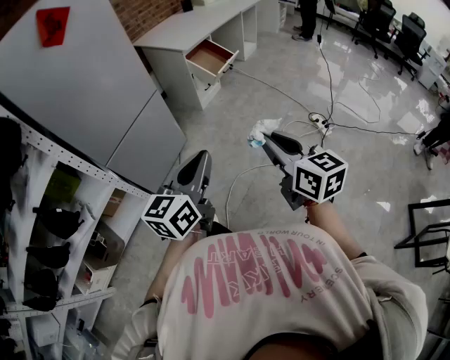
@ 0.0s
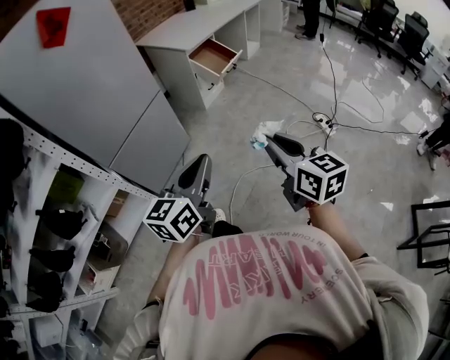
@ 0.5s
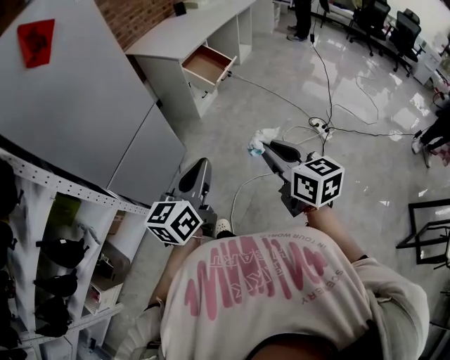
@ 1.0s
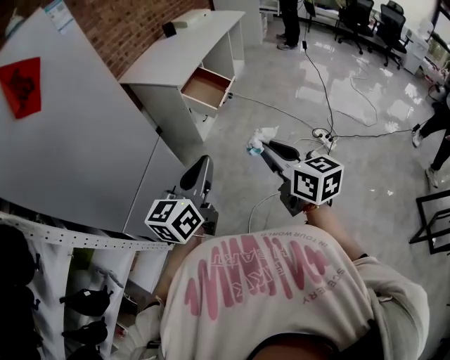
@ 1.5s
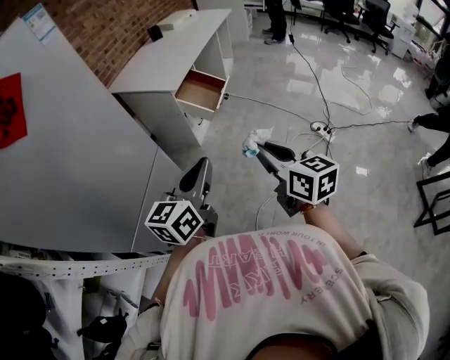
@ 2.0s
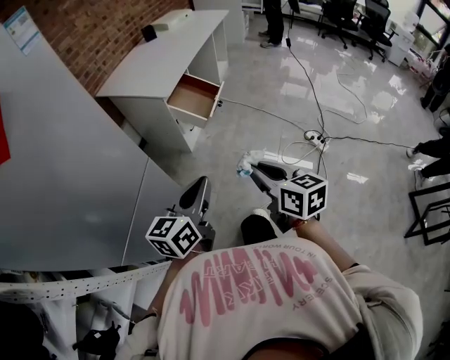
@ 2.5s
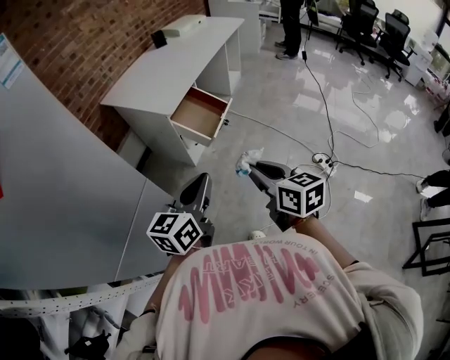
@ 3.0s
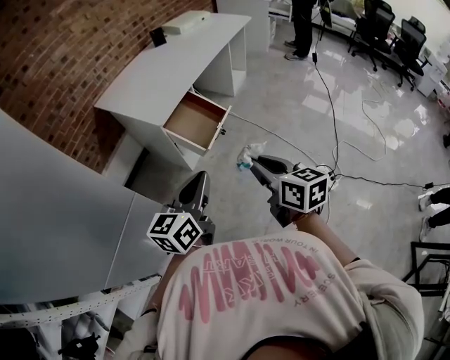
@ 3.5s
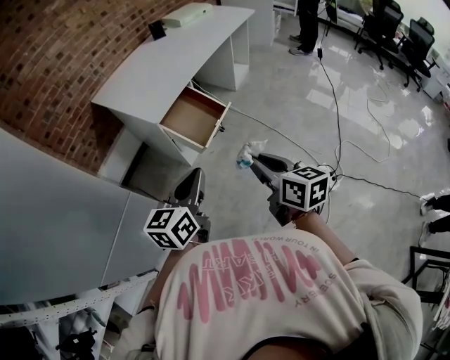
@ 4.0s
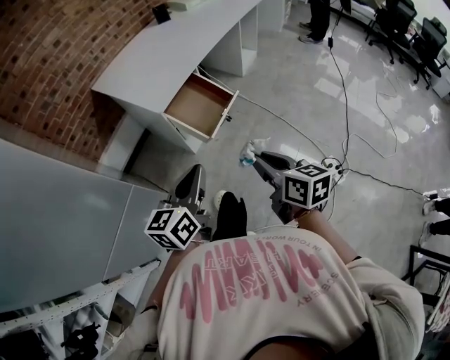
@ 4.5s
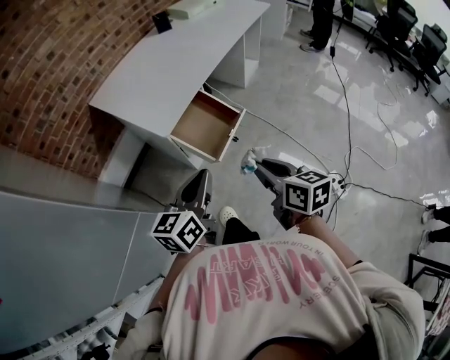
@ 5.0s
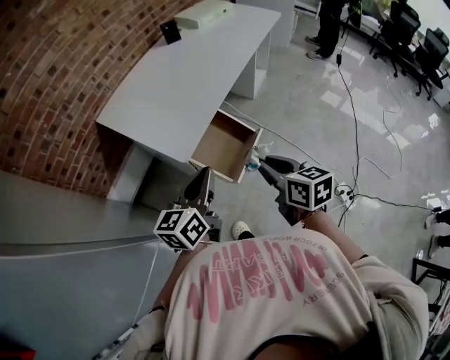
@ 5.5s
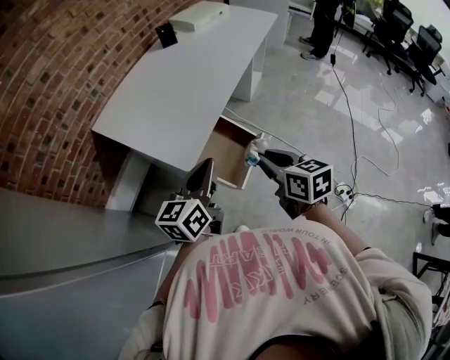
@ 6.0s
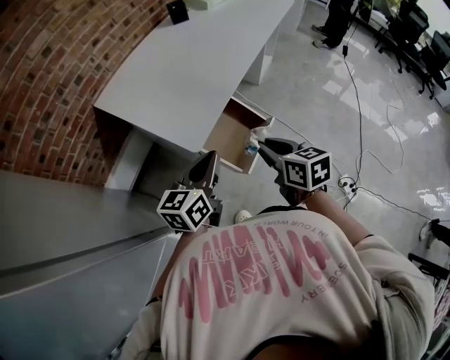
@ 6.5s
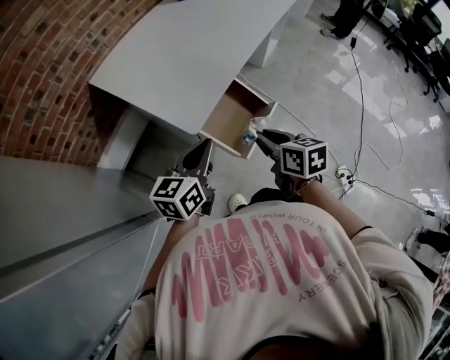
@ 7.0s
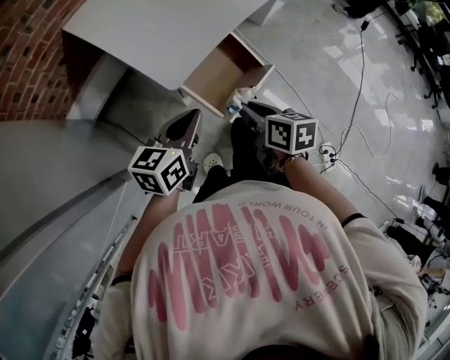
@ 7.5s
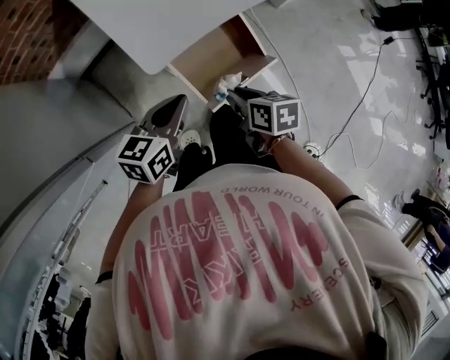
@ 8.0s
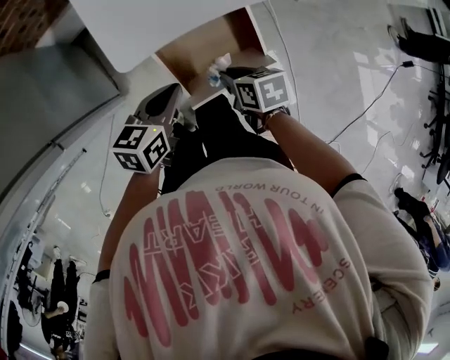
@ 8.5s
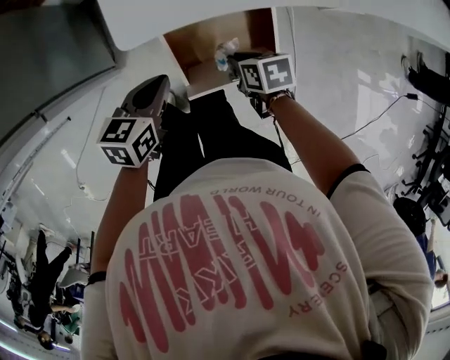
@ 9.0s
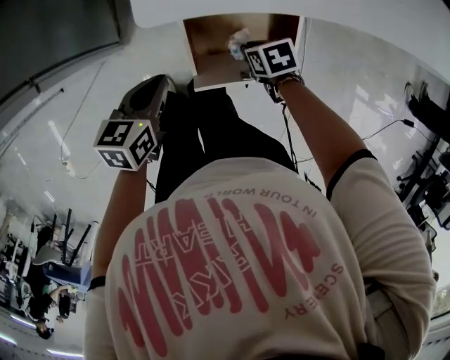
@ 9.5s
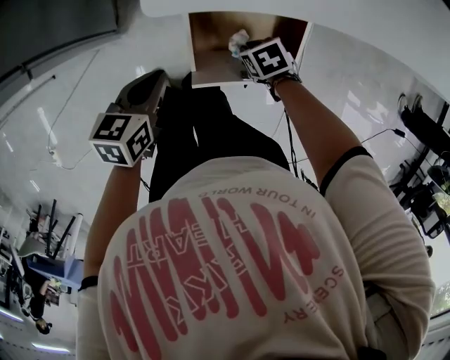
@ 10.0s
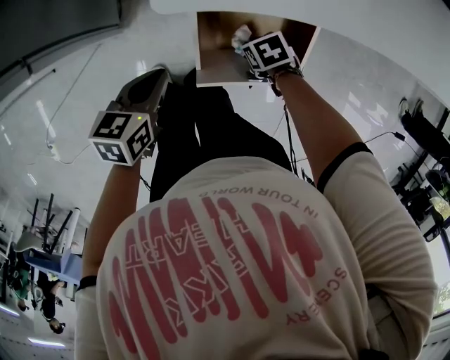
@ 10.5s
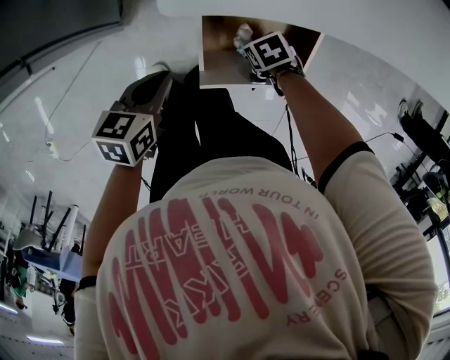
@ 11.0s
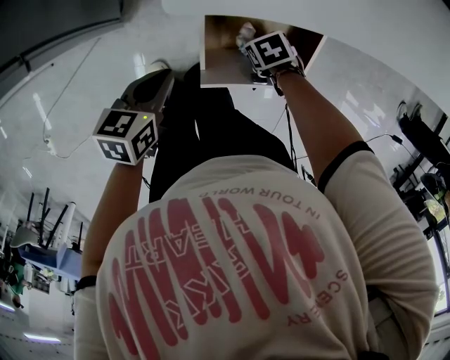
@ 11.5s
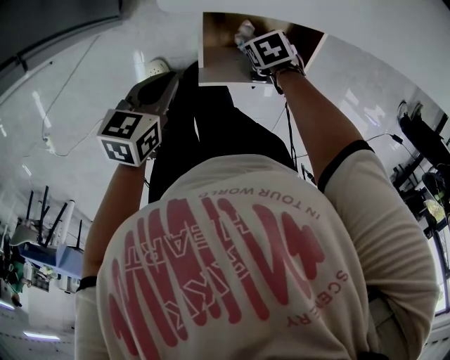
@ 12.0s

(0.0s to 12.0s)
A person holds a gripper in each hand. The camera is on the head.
0.0s - 2.0s: The right gripper is displaced forward and to the left by some 30 cm; the left gripper travels forward by roughly 30 cm.
2.0s - 4.0s: The grippers both shift forward and to the right by roughly 35 cm.
4.0s - 6.0s: The two grippers go approximately 30 cm forward.
6.0s - 8.0s: Both grippers travel together downward, approximately 20 cm. The left gripper swivels approximately 20 degrees. Meanwhile the right gripper changes its angle by roughly 30 degrees.
8.0s - 10.0s: The left gripper heads downward, covering some 10 cm, and turns by about 40 degrees, while the right gripper is displaced downward by about 20 cm, and turns by some 70 degrees.
10.0s - 12.0s: The grippers move only a little.

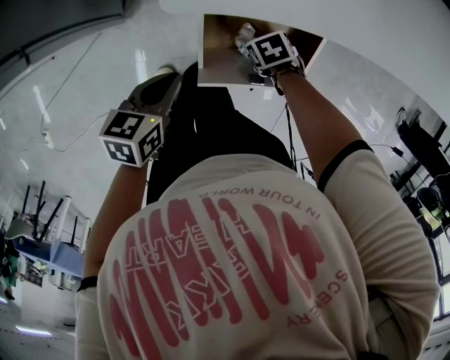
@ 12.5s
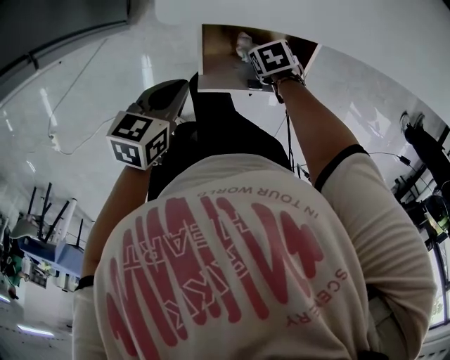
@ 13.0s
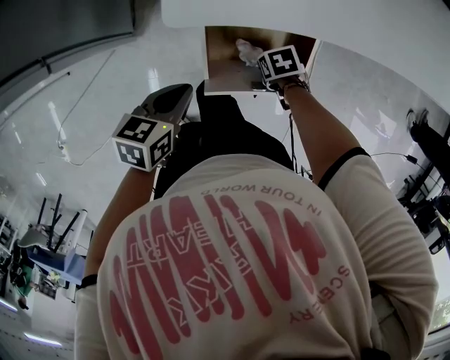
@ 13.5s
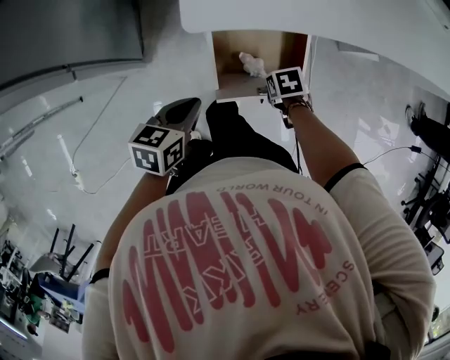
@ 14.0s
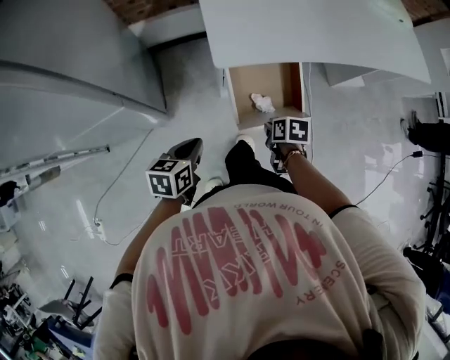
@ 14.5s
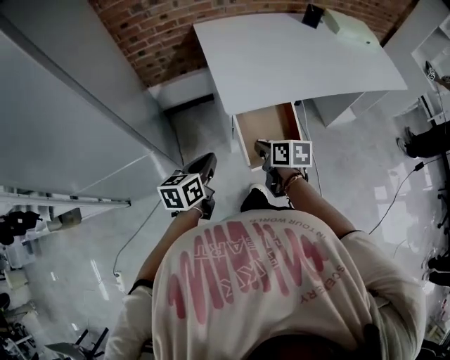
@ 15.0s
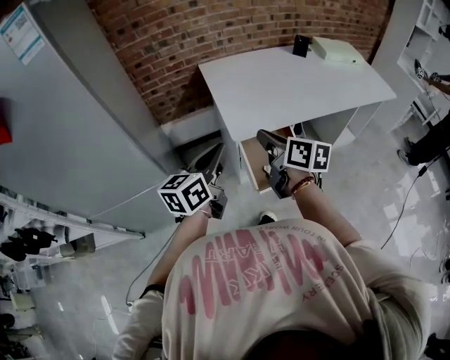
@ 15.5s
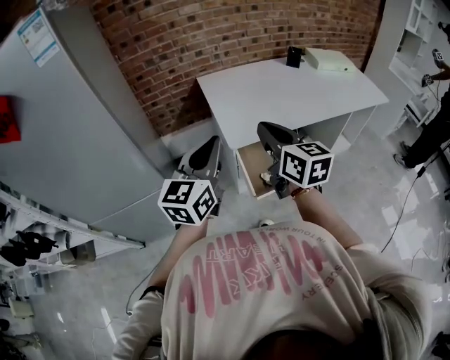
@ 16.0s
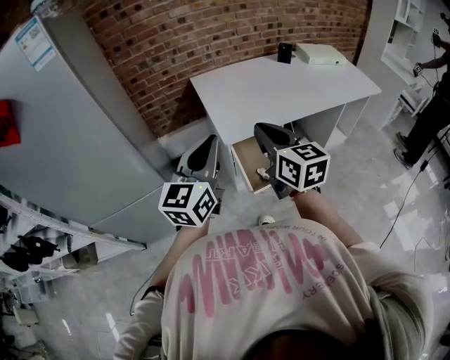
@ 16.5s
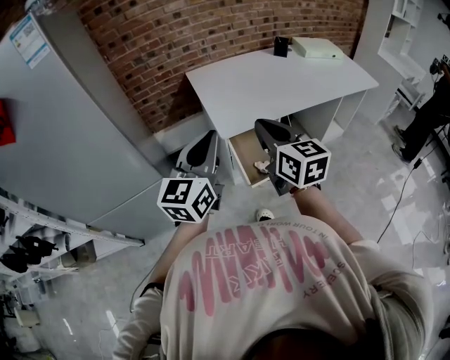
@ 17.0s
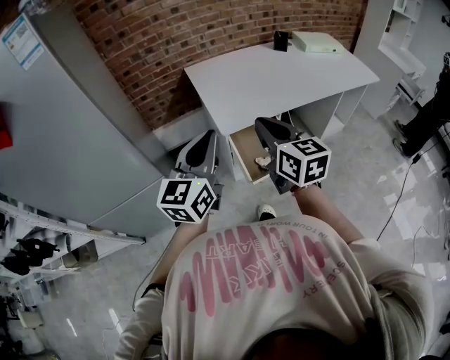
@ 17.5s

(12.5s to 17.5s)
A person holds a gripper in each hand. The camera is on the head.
12.5s - 15.0s: The left gripper moves upward, roughly 20 cm, and turns by about 30 degrees, while the right gripper shifts about 35 cm upward, points its fingers about 40 degrees further upward, and closes its fingers.
15.0s - 17.5s: The grippers both shift upward by about 25 cm. The right gripper tilts its fingers approximately 30 degrees upward, while the left gripper turns by roughly 40 degrees.

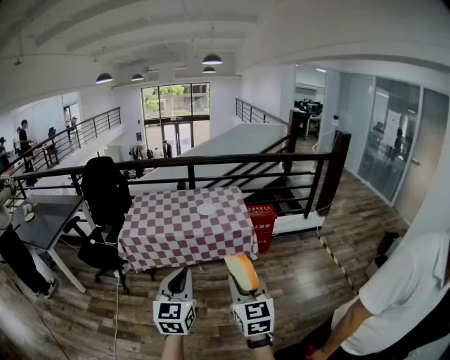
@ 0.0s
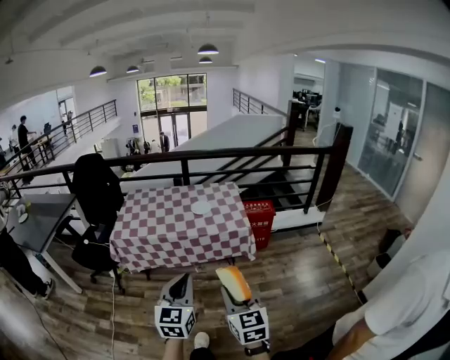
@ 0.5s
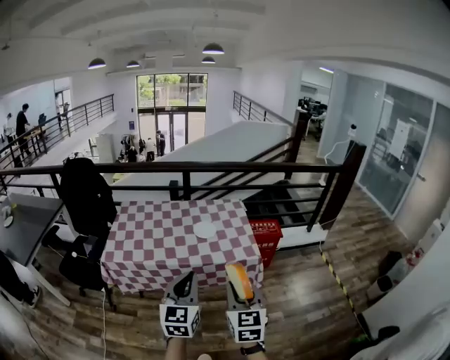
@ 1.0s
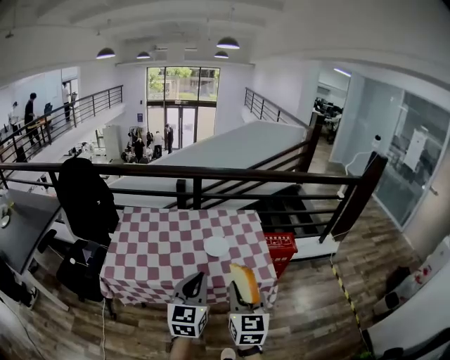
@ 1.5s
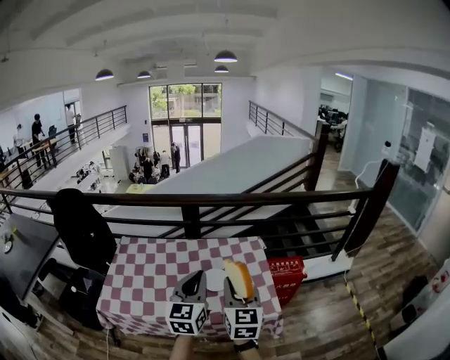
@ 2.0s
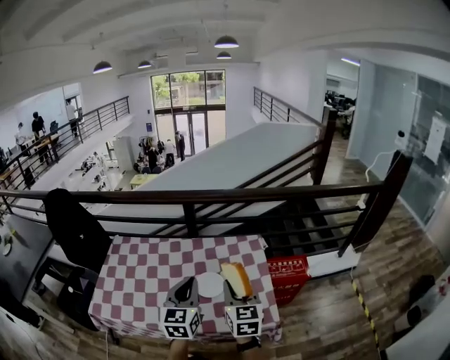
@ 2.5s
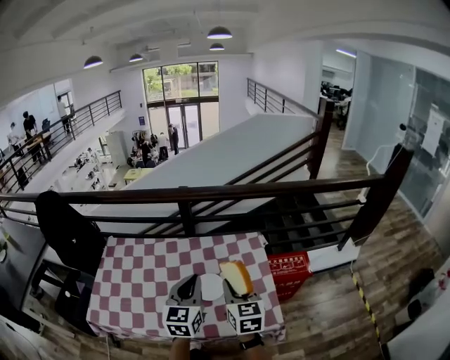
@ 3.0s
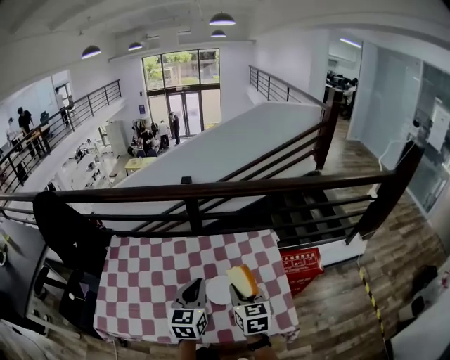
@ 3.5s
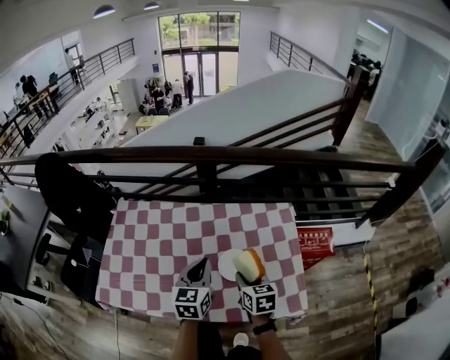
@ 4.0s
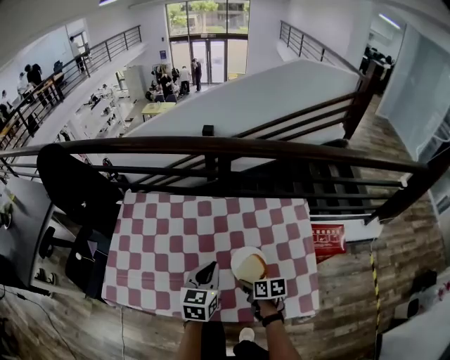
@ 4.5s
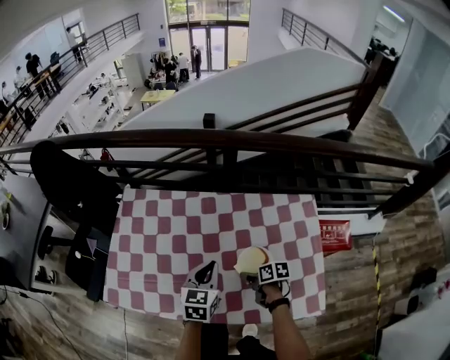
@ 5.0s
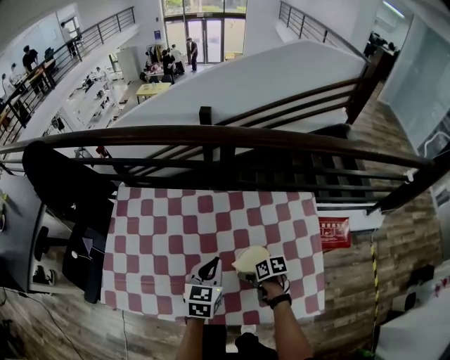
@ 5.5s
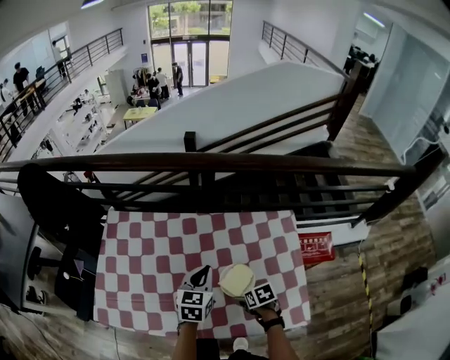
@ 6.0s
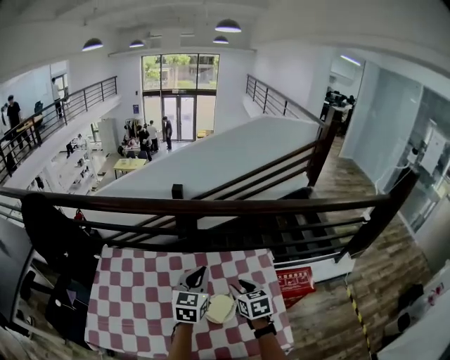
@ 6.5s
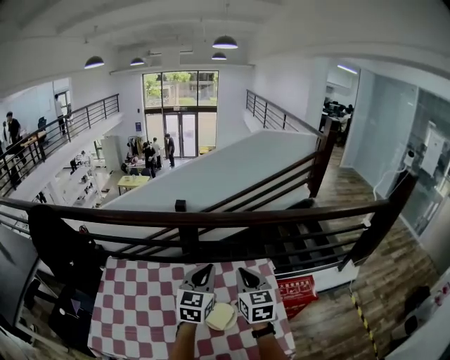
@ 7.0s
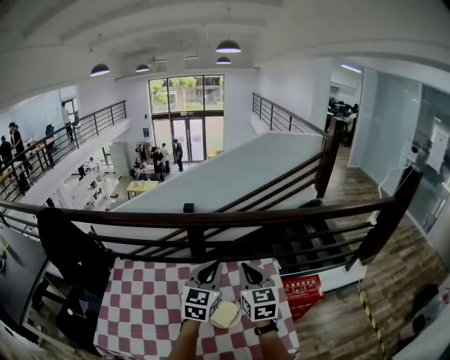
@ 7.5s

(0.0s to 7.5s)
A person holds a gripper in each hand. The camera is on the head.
0.0s - 2.0s: Both grippers are carried forward, some 60 cm.
2.0s - 4.0s: The two grippers go approximately 30 cm downward and forward. The left gripper turns by approximately 20 degrees. Meanwhile the right gripper tilts its fingers approximately 40 degrees downward.
4.0s - 5.5s: The right gripper shifts roughly 15 cm downward, changes its angle by roughly 50 degrees, and opens up. The left gripper travels downward and forward by some 10 cm.
5.5s - 7.5s: The right gripper shifts about 40 cm upward, points its fingers approximately 40 degrees further upward, and closes. Meanwhile the left gripper goes about 25 cm upward, and changes its angle by about 30 degrees.

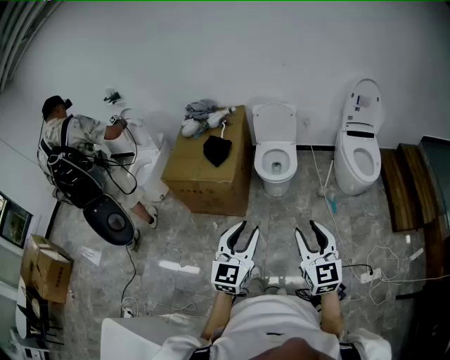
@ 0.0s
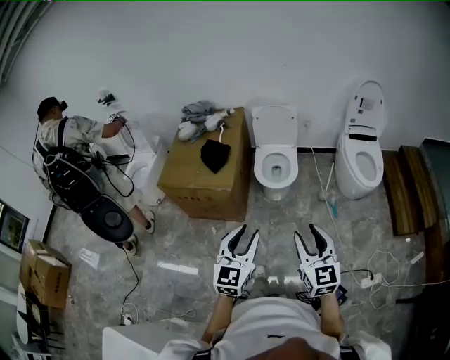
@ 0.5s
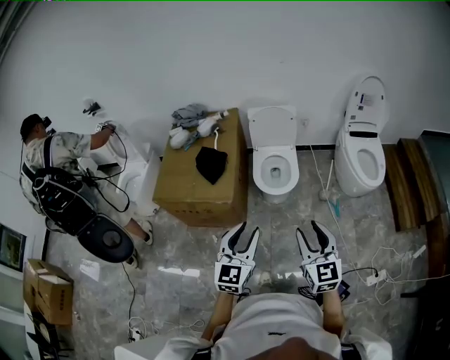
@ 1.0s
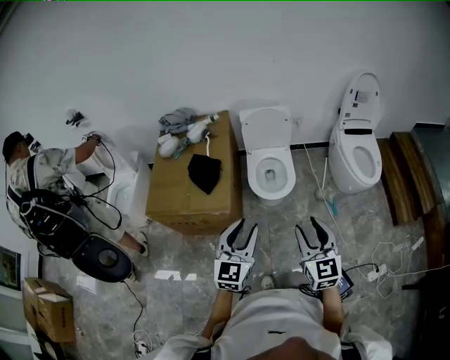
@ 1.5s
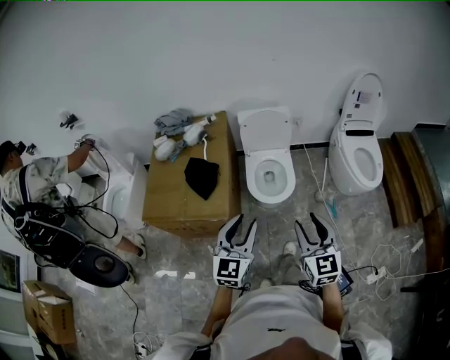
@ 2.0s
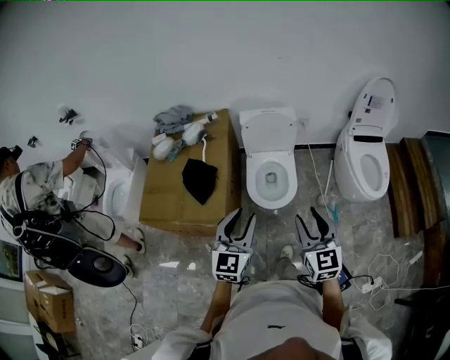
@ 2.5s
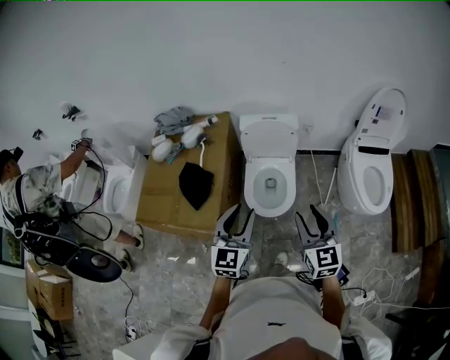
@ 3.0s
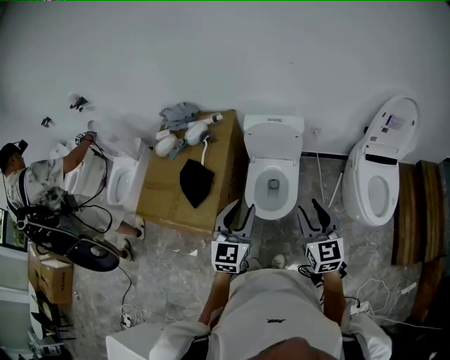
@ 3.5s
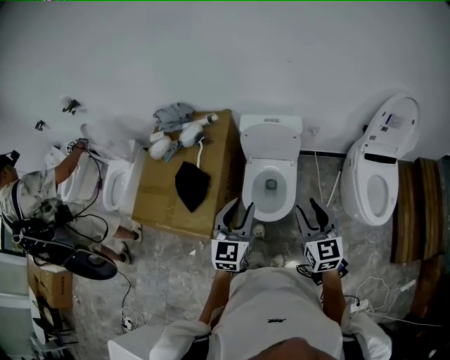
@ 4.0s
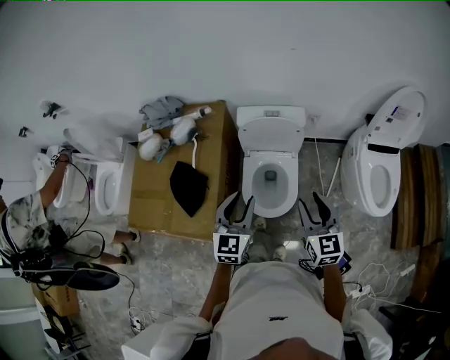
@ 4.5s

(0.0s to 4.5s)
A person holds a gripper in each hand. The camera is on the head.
0.0s - 2.0s: Both grippers travel together forward, some 30 cm.
2.0s - 4.5s: The two grippers go some 35 cm forward.
